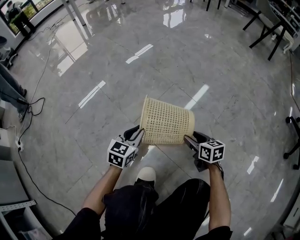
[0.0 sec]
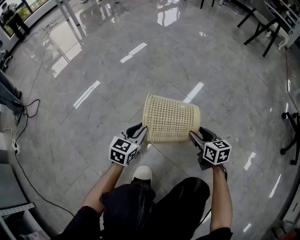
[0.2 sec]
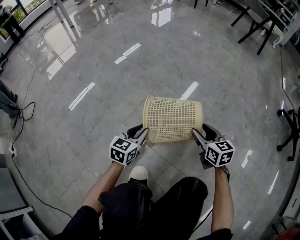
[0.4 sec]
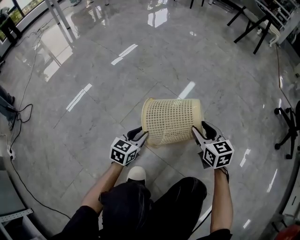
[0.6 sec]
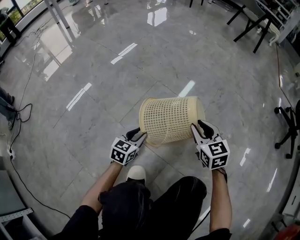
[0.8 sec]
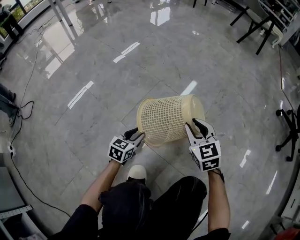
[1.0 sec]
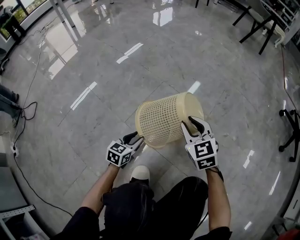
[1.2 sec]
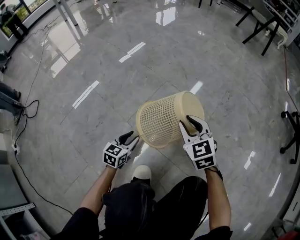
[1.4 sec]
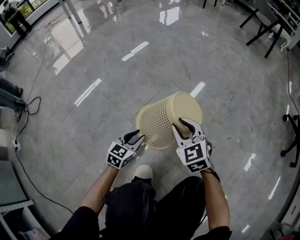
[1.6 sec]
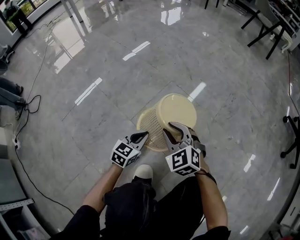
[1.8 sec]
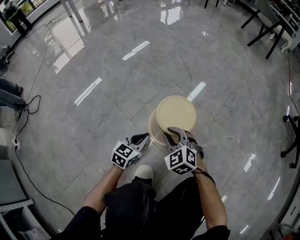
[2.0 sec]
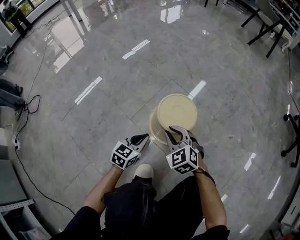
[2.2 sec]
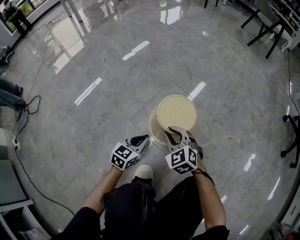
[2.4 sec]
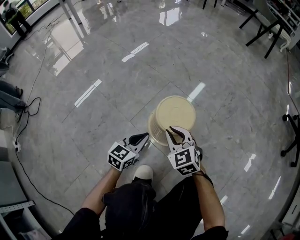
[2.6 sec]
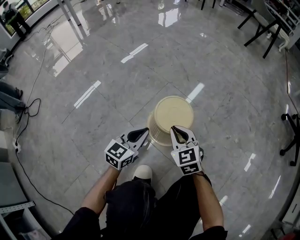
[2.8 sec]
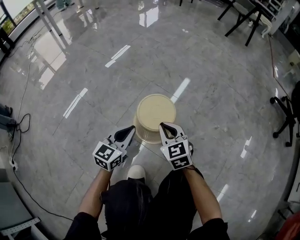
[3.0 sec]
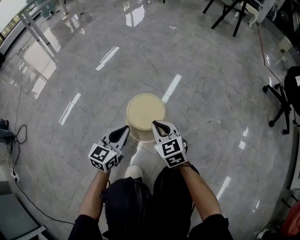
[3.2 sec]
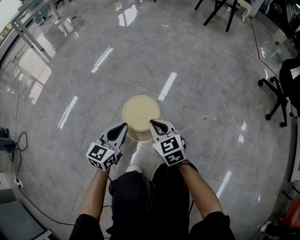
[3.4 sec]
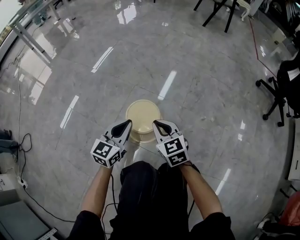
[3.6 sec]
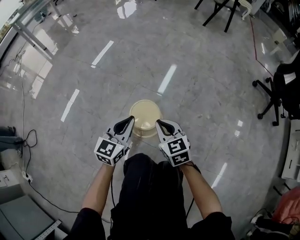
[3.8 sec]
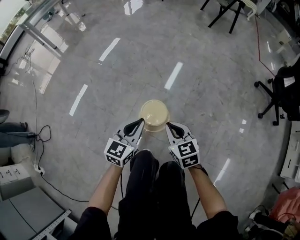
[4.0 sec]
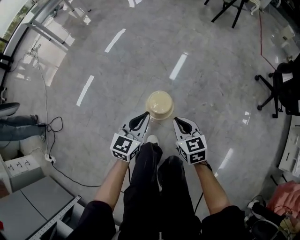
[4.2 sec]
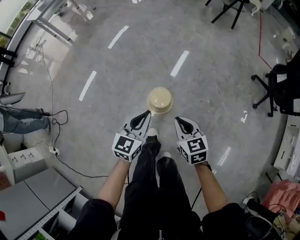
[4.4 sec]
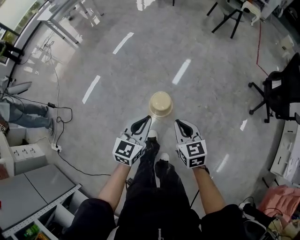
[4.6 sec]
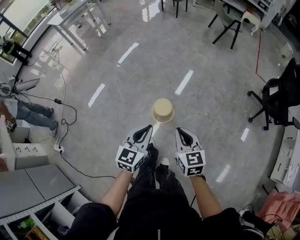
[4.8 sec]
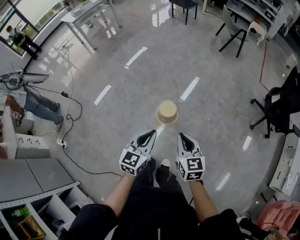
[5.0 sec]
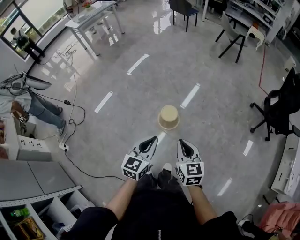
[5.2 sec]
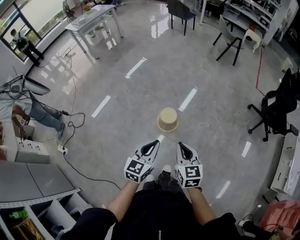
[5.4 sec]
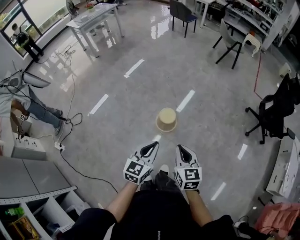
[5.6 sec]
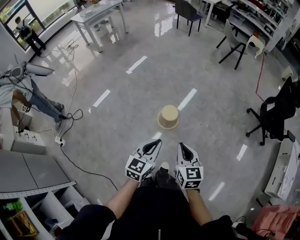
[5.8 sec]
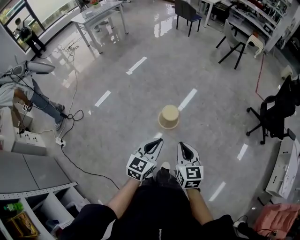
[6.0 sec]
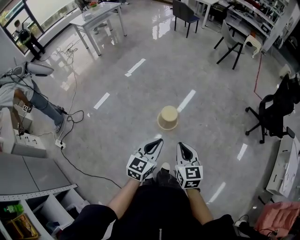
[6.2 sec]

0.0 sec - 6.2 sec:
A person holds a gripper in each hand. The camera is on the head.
0.0 sec - 1.6 sec: The left gripper goes to the right and returns, about 10 cm each way, while the right gripper moves upward and to the left, some 15 cm, rolls counterclockwise, seen from behind, by some 40 degrees, and closes.
1.6 sec - 3.2 sec: The left gripper is displaced upward and to the right by roughly 15 cm, and closes its fingers. Meanwhile the right gripper closes up.
3.2 sec - 4.6 sec: Both grippers move upward, some 60 cm.
4.6 sec - 6.2 sec: The right gripper is displaced backward and upward by some 20 cm; the left gripper shifts some 20 cm backward.

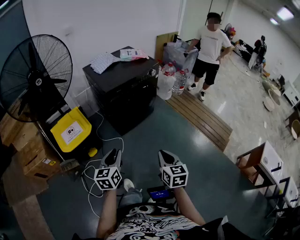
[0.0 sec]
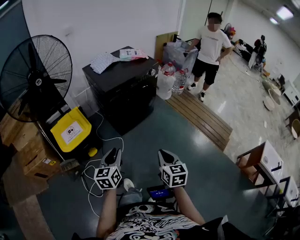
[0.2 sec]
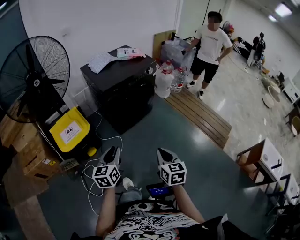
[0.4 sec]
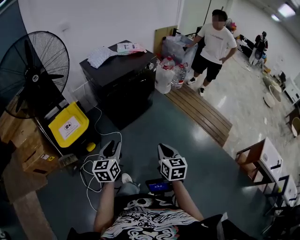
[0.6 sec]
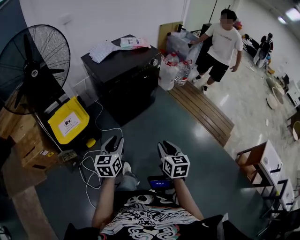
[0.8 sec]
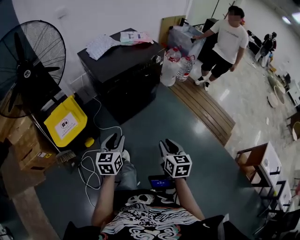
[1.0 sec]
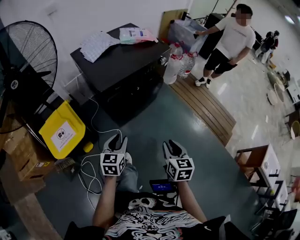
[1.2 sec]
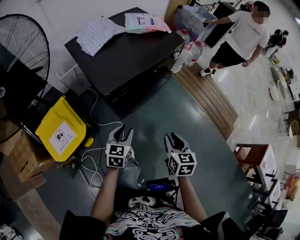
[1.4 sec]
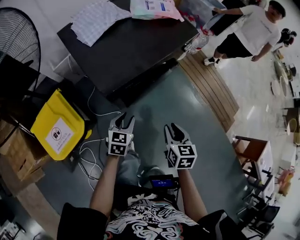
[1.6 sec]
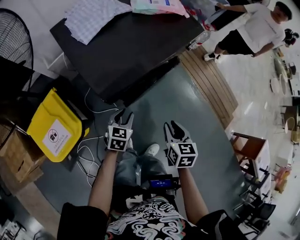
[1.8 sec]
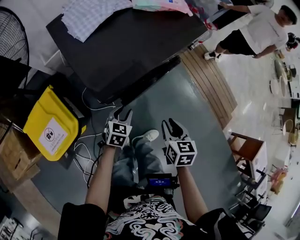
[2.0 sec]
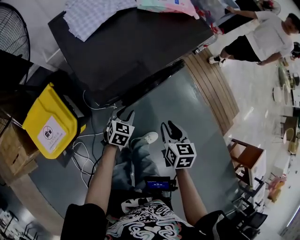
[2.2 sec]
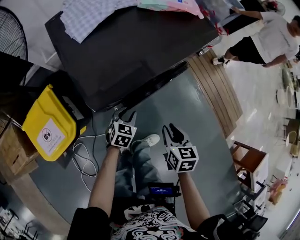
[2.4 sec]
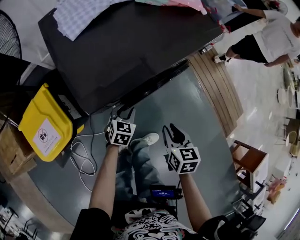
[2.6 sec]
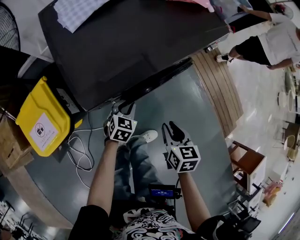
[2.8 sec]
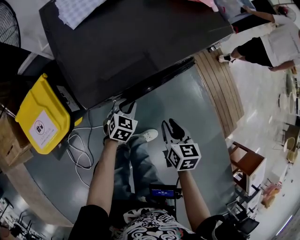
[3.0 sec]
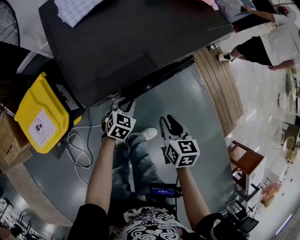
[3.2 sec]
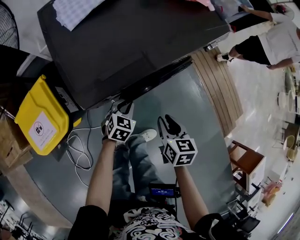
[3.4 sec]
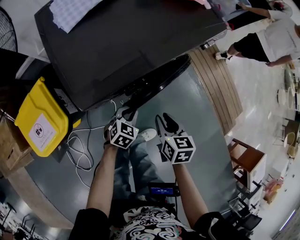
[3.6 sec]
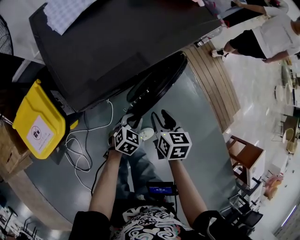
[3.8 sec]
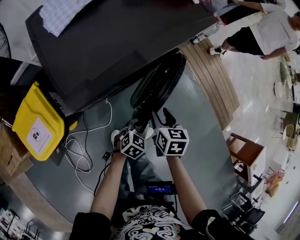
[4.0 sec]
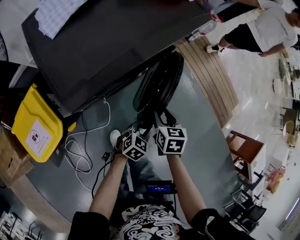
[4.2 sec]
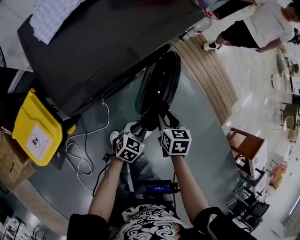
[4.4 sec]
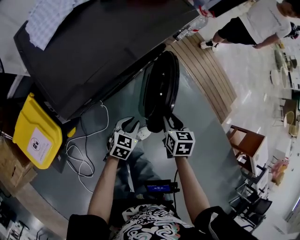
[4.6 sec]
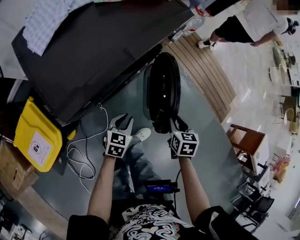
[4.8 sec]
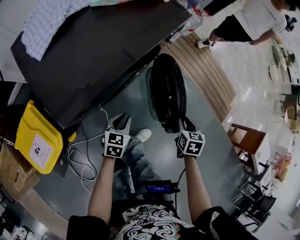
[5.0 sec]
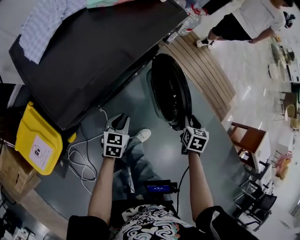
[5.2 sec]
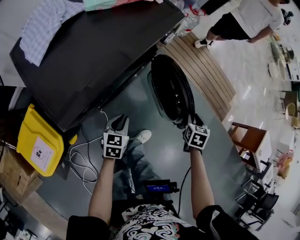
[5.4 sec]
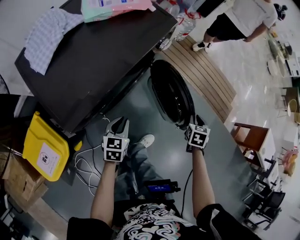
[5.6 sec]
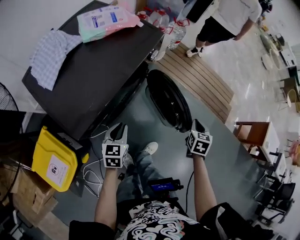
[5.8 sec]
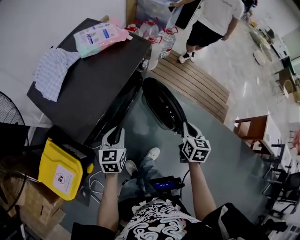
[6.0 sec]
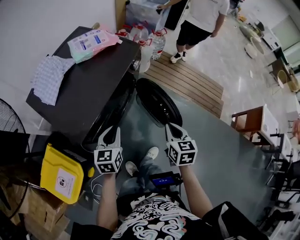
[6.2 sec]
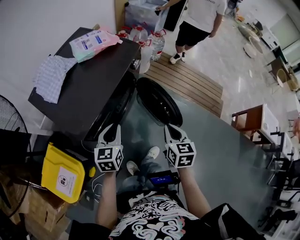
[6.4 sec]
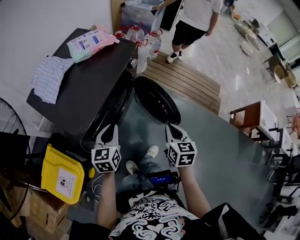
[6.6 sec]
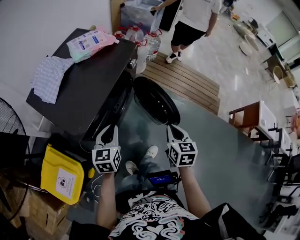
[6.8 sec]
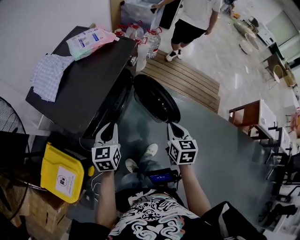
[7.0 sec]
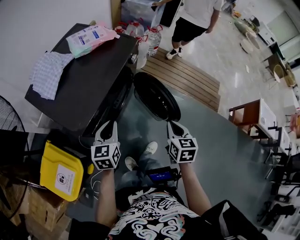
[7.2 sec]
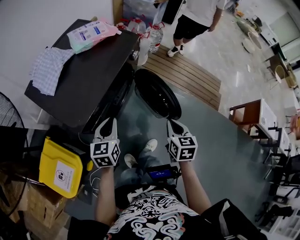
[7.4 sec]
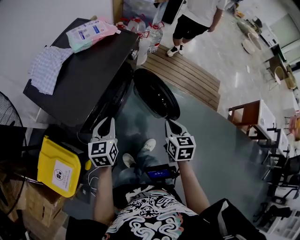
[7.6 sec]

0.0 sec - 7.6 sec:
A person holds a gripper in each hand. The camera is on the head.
0.0 sec - 1.6 sec: The two grippers go approximately 40 cm forward and downward. The left gripper rotates some 30 degrees. Meanwhile the right gripper opens.
1.6 sec - 3.0 sec: The grippers both shift downward and forward by about 15 cm.
3.0 sec - 4.6 sec: The left gripper moves to the right and backward, roughly 15 cm. Meanwhile the right gripper moves to the right, approximately 10 cm.
4.6 sec - 6.0 sec: The right gripper goes about 15 cm upward and to the right, changes its angle by roughly 30 degrees, and closes; the left gripper is displaced upward and to the left by about 20 cm.
6.0 sec - 7.6 sec: The left gripper is displaced upward by roughly 5 cm, while the right gripper shifts some 10 cm backward and to the left.

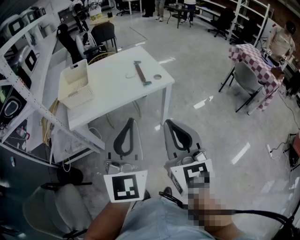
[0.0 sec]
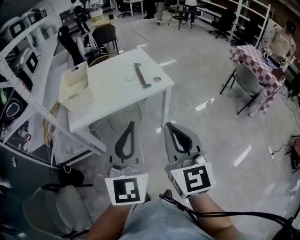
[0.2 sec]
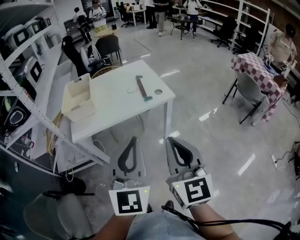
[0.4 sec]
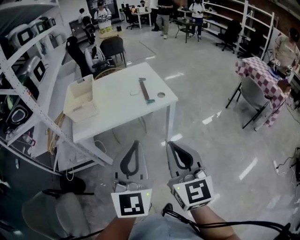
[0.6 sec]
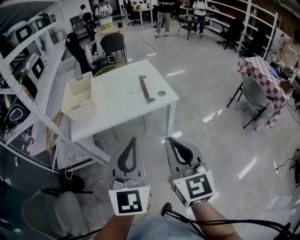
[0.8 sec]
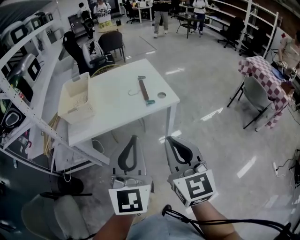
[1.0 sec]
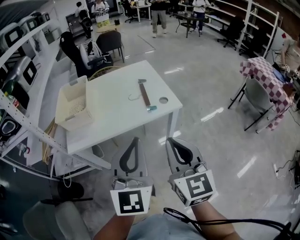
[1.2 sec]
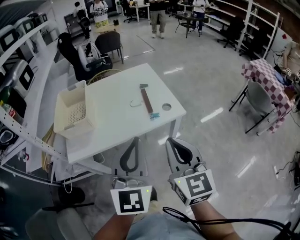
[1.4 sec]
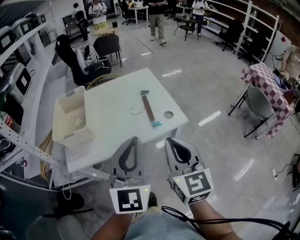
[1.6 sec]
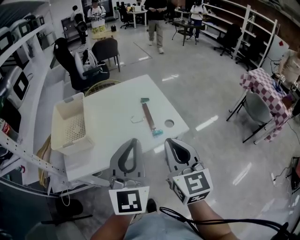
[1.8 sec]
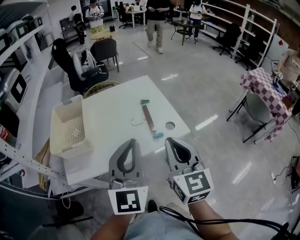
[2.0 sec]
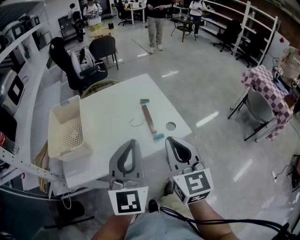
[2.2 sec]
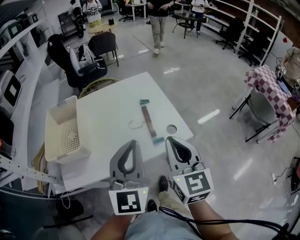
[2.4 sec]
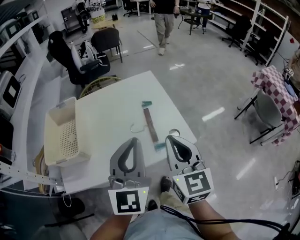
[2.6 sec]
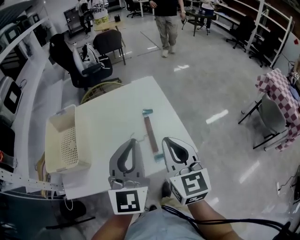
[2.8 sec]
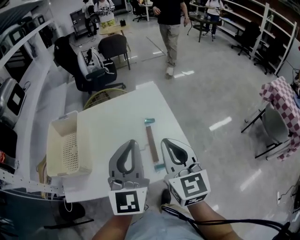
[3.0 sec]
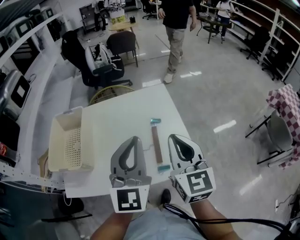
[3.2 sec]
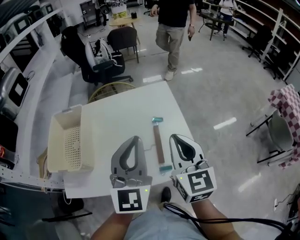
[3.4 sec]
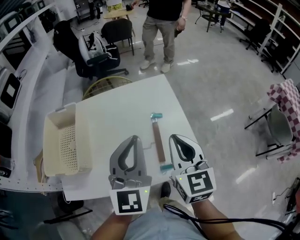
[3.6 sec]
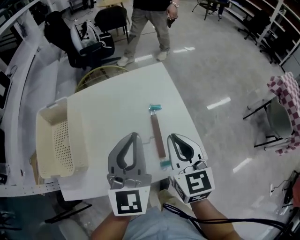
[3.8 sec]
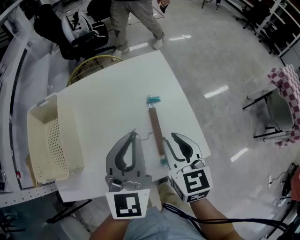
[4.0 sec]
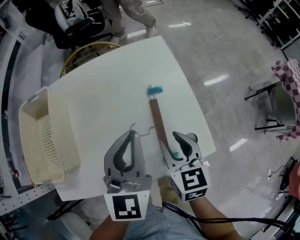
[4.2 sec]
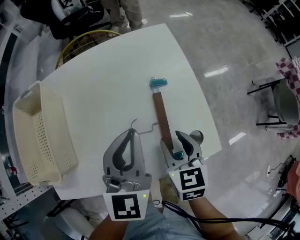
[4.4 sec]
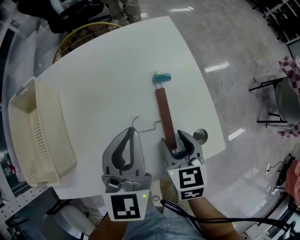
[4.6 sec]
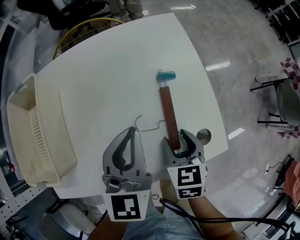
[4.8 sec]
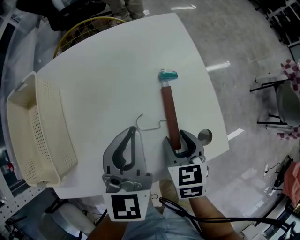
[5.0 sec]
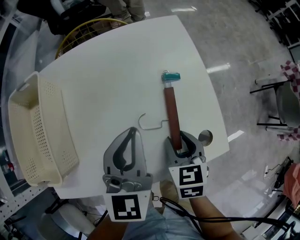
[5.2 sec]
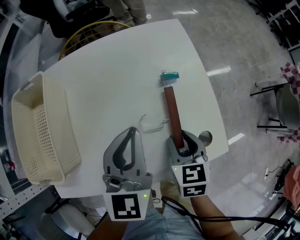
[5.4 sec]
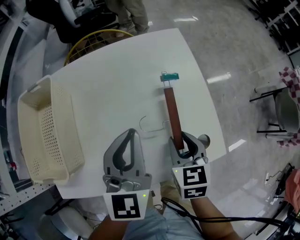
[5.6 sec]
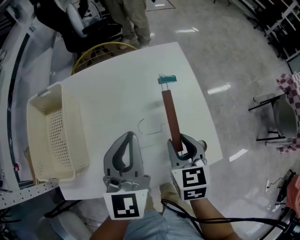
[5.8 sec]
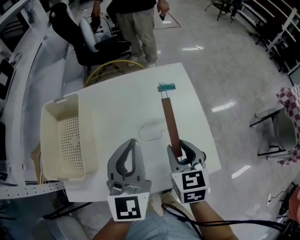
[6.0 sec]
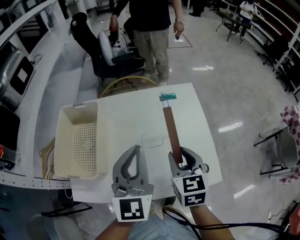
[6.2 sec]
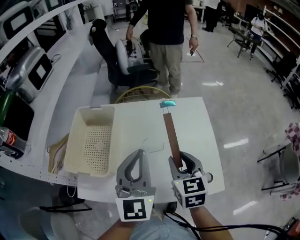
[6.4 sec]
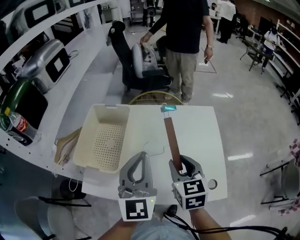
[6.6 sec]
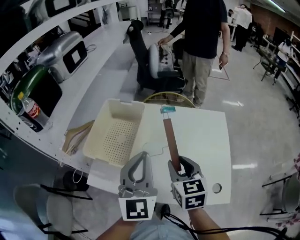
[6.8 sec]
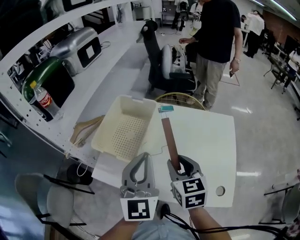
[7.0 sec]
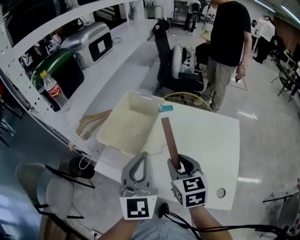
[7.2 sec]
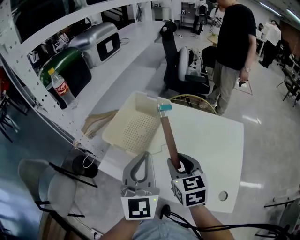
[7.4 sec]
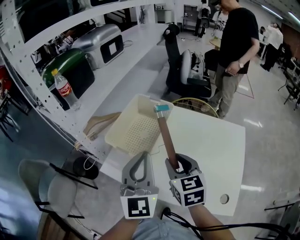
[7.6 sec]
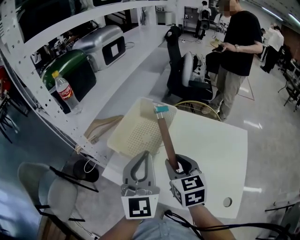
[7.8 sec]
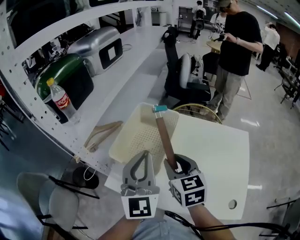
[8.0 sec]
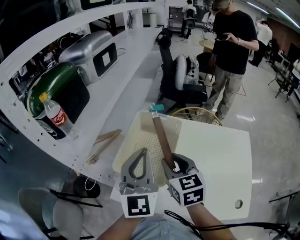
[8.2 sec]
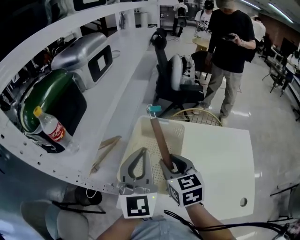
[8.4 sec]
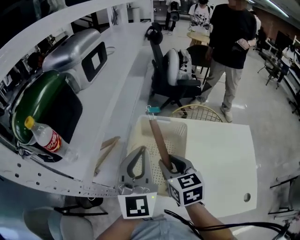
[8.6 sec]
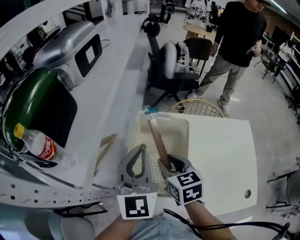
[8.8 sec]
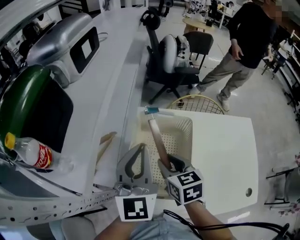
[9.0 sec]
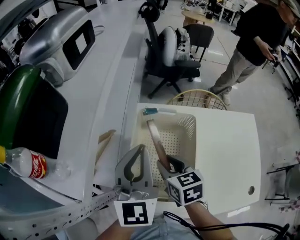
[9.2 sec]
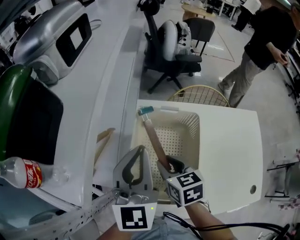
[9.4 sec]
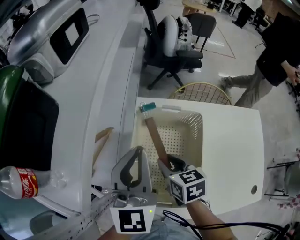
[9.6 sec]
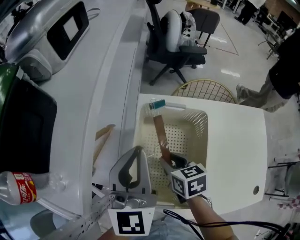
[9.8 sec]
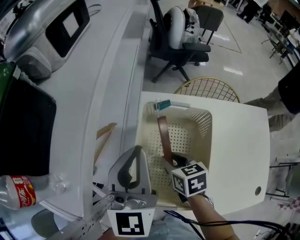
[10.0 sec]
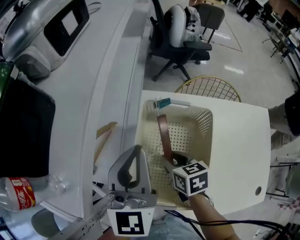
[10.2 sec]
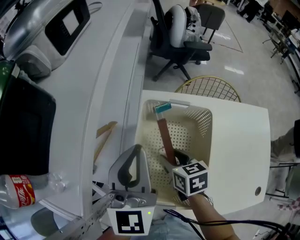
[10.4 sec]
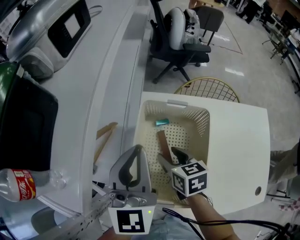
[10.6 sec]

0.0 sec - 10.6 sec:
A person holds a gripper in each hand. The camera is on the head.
0.0 sec - 1.6 sec: Both grippers move forward, approximately 25 cm.
1.6 sec - 3.0 sec: Both grippers move forward, roughly 25 cm.
3.0 sec - 4.6 sec: The right gripper travels downward by roughly 25 cm, tips its fingers downward by approximately 40 degrees, and opens; the left gripper heads downward and forward, covering approximately 20 cm, and turns by roughly 20 degrees.
4.6 sec - 6.0 sec: The two grippers go approximately 10 cm upward.
6.0 sec - 7.6 sec: The right gripper ends up roughly 25 cm from where it was, and rotates about 40 degrees; the left gripper ends up some 20 cm from where it was, and changes its angle by about 40 degrees.
7.6 sec - 9.0 sec: Both grippers travel together forward and to the left, approximately 25 cm.
9.0 sec - 10.6 sec: The left gripper shifts by about 5 cm. Meanwhile the right gripper heads downward, covering about 10 cm.
